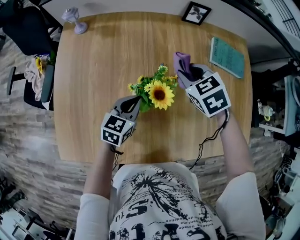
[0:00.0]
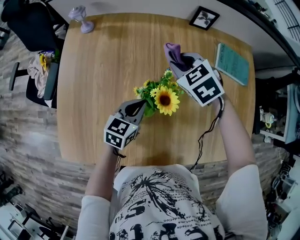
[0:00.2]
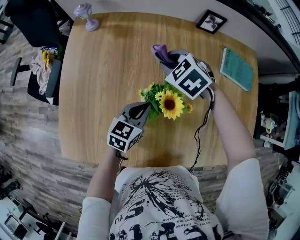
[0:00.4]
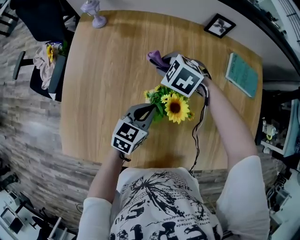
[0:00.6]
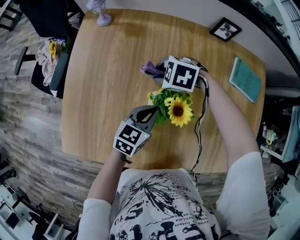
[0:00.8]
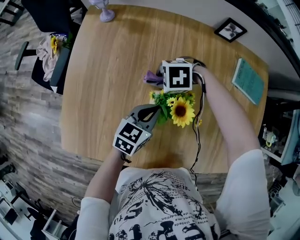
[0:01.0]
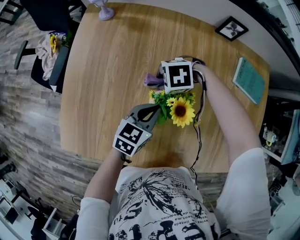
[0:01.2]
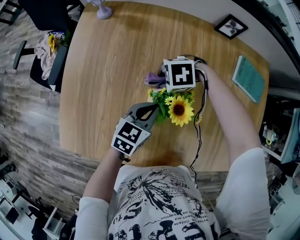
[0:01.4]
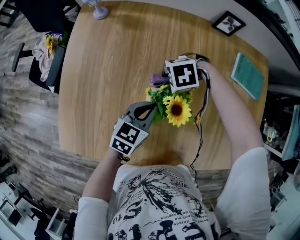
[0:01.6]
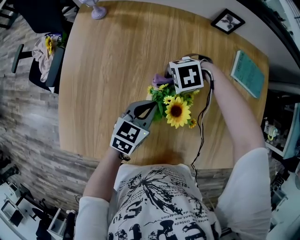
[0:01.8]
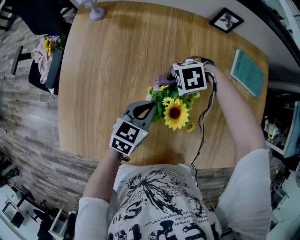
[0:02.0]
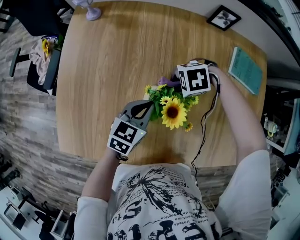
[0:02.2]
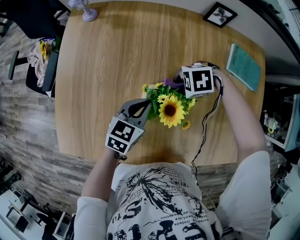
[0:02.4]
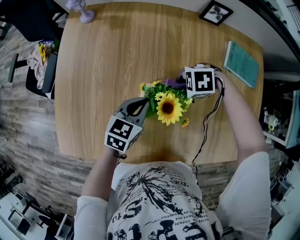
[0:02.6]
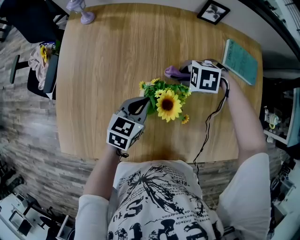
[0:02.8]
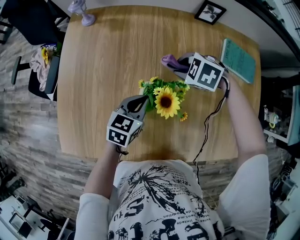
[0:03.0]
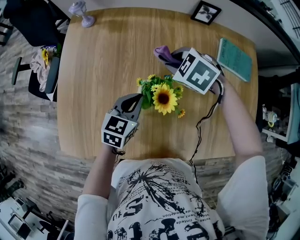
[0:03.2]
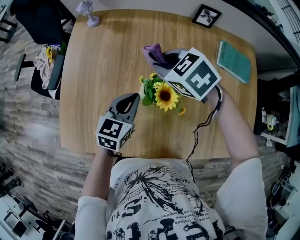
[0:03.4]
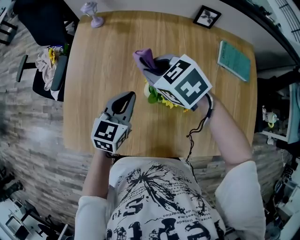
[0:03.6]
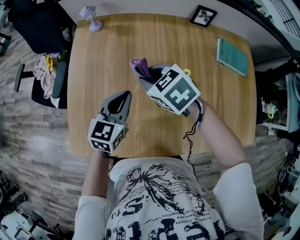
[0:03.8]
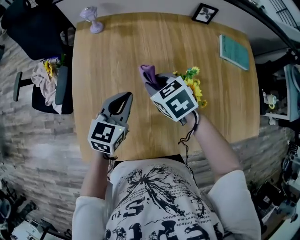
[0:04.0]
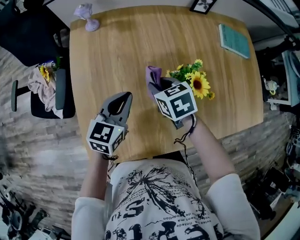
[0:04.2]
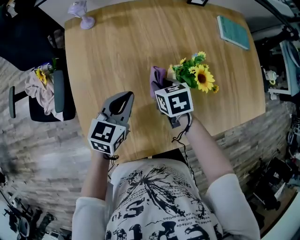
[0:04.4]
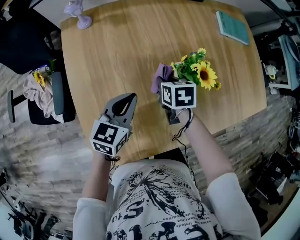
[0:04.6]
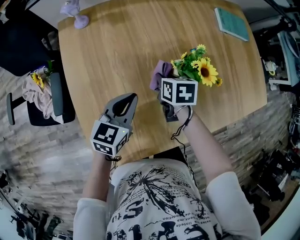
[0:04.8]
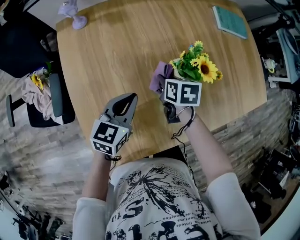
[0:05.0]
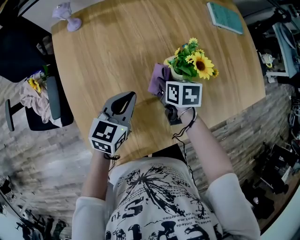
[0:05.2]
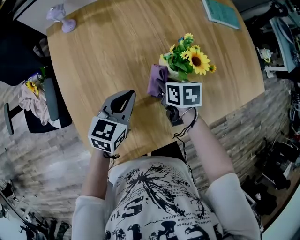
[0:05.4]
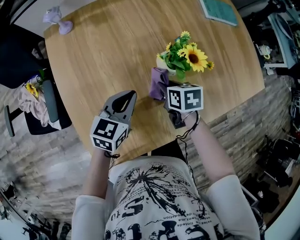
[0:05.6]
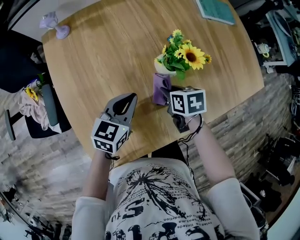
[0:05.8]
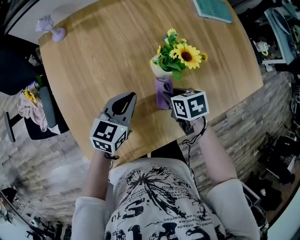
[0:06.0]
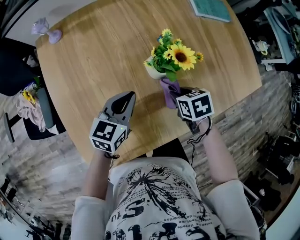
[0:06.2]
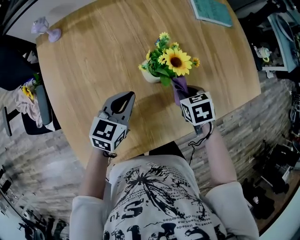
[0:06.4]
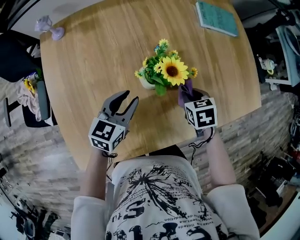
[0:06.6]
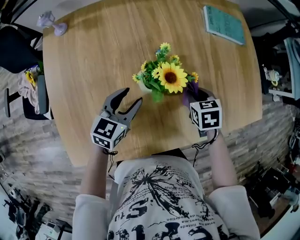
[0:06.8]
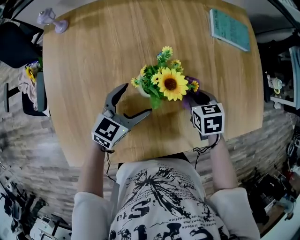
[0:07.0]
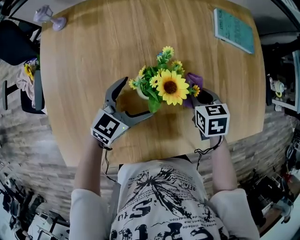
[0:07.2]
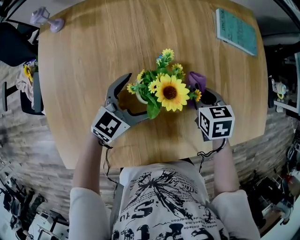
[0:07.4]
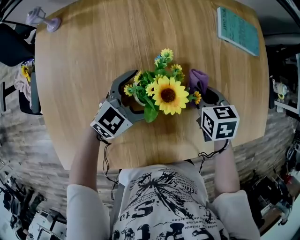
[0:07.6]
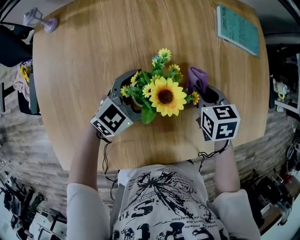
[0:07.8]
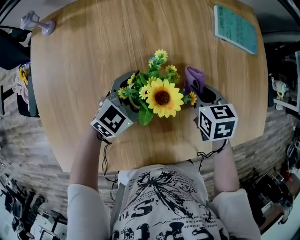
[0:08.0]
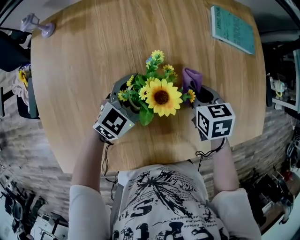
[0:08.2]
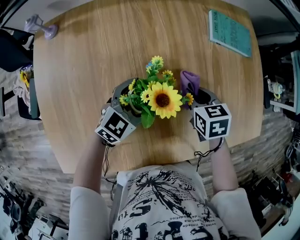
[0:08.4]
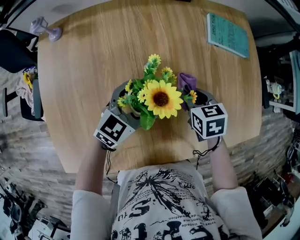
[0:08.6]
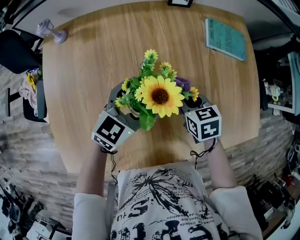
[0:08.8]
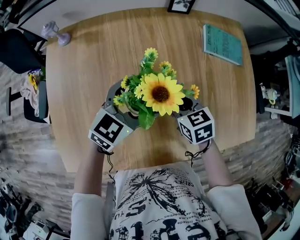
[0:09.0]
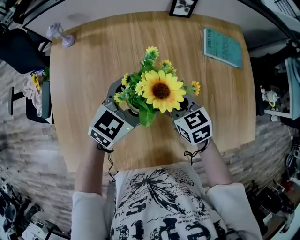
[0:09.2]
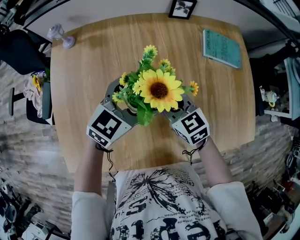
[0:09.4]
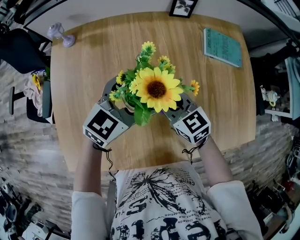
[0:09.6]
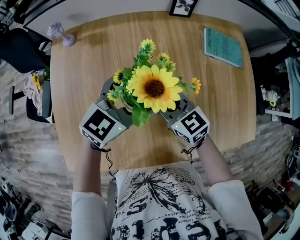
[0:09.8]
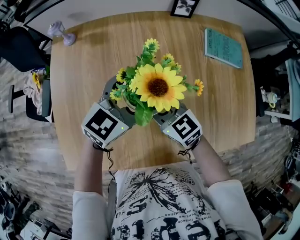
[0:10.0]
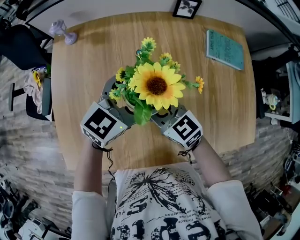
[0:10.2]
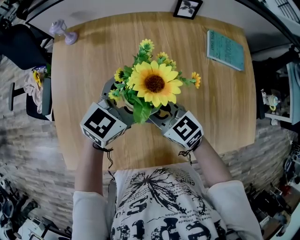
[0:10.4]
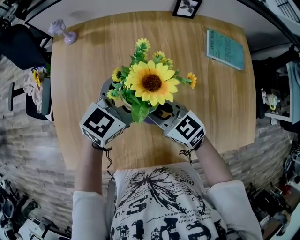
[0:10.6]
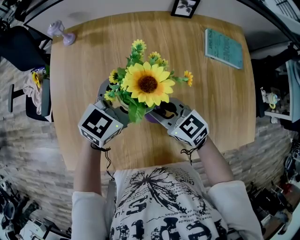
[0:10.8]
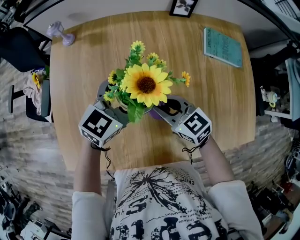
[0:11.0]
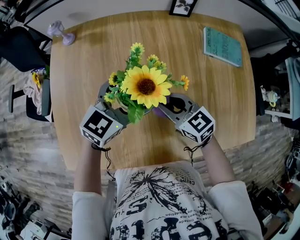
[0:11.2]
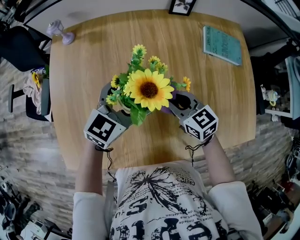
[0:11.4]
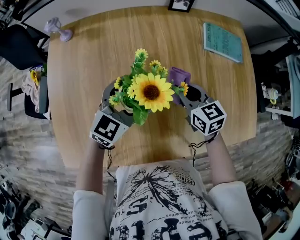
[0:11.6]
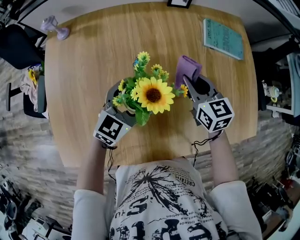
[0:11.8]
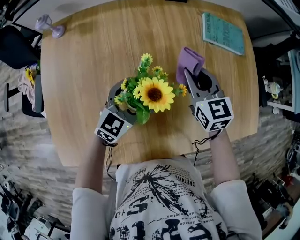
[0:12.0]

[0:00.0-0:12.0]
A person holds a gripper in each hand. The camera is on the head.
0.0 to 1.6 s: The right gripper moves downward, some 15 cm, and turns by approximately 80 degrees.
1.6 to 3.0 s: The right gripper shifts by about 10 cm, and rotates roughly 40 degrees.
3.0 to 4.4 s: The left gripper moves roughly 20 cm; the right gripper travels upward and back again, approximately 10 cm each way, and rolls clockwise, seen from behind, by about 70 degrees.
4.4 to 6.0 s: The right gripper moves to the right and backward, roughly 15 cm; the left gripper shifts some 10 cm to the right.
6.0 to 7.6 s: The left gripper travels to the right and forward by some 20 cm, turns by roughly 20 degrees, and opens its fingers. Meanwhile the right gripper travels forward and to the right by approximately 25 cm.
7.6 to 9.0 s: The left gripper is displaced upward by approximately 10 cm. Meanwhile the right gripper shifts about 10 cm to the left.
9.0 to 10.4 s: The right gripper travels to the left and upward by roughly 10 cm, and turns by about 30 degrees.
10.4 to 12.0 s: The left gripper heads downward, covering roughly 10 cm. The right gripper heads to the right and forward, covering some 20 cm, and turns by roughly 40 degrees.

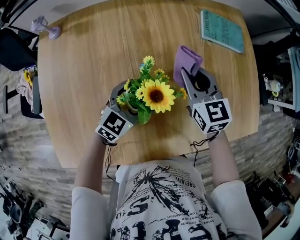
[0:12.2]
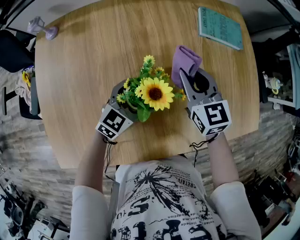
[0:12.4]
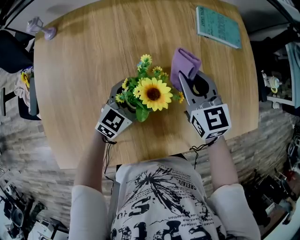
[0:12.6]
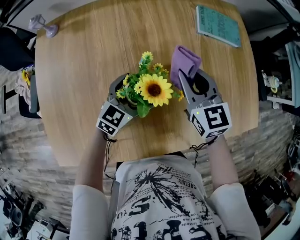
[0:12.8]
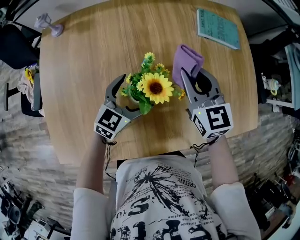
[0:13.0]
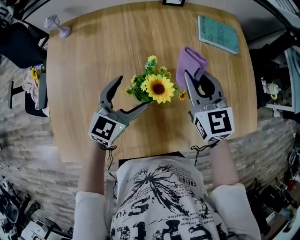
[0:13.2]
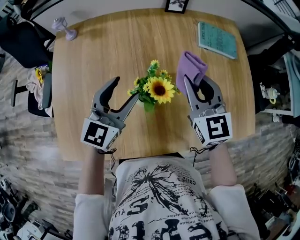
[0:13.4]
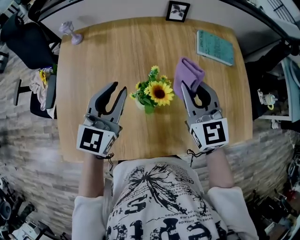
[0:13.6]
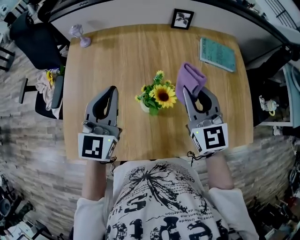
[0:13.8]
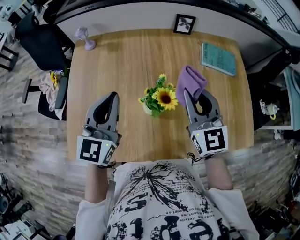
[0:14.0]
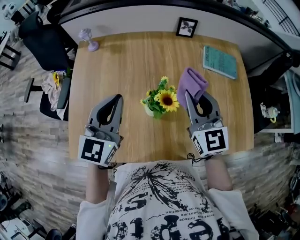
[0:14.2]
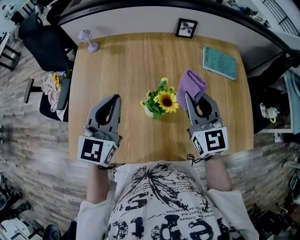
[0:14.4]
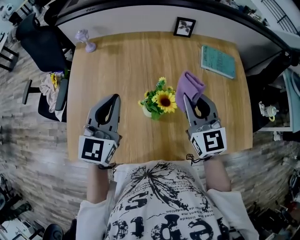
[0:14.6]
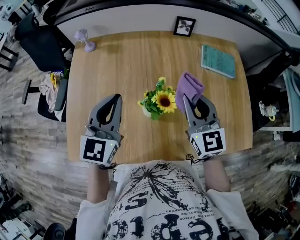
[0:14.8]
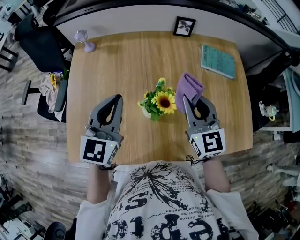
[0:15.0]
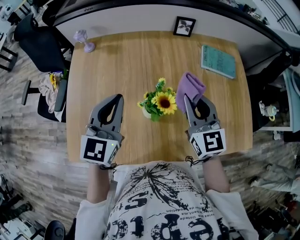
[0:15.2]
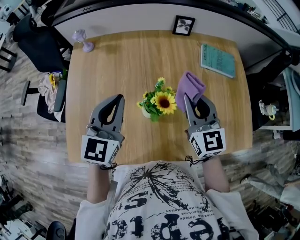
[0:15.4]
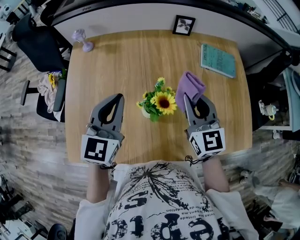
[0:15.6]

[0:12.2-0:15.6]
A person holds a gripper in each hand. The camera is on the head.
12.2 to 13.8 s: The left gripper is displaced upward and to the left by some 25 cm, rotates some 50 degrees, and closes up; the right gripper heads upward and backward, covering about 15 cm.
13.8 to 15.6 s: The grippers make only small movements.

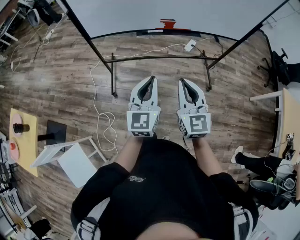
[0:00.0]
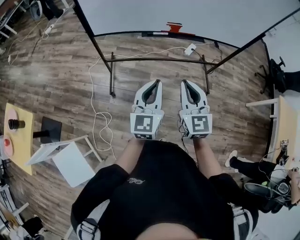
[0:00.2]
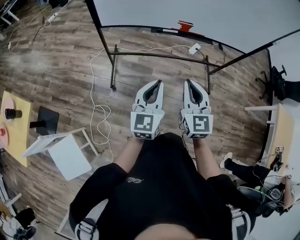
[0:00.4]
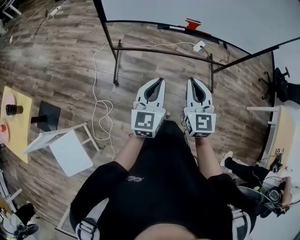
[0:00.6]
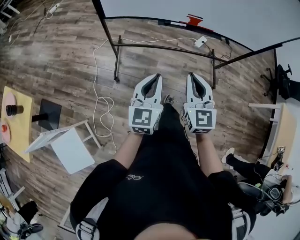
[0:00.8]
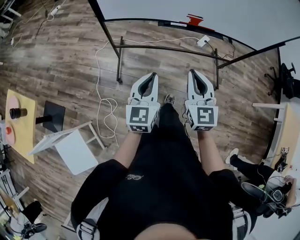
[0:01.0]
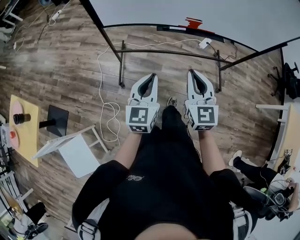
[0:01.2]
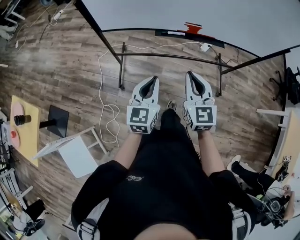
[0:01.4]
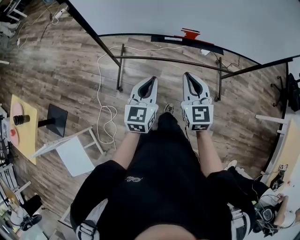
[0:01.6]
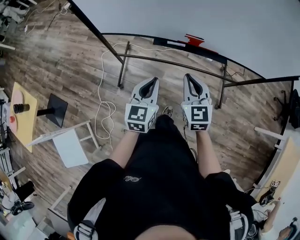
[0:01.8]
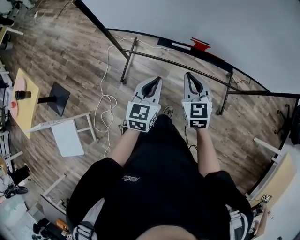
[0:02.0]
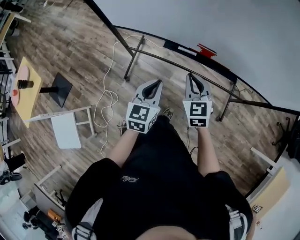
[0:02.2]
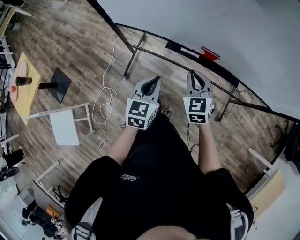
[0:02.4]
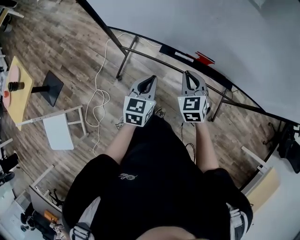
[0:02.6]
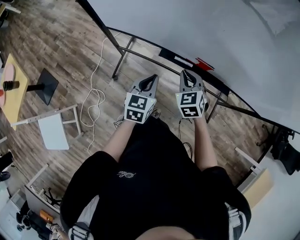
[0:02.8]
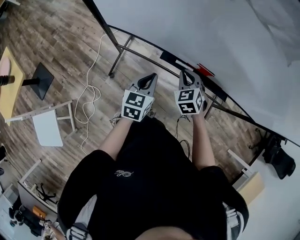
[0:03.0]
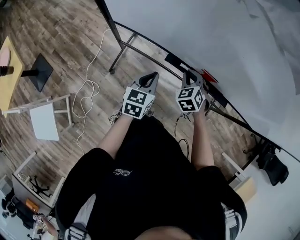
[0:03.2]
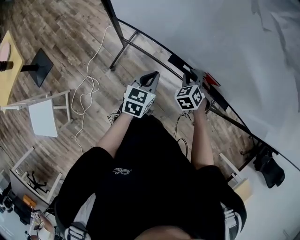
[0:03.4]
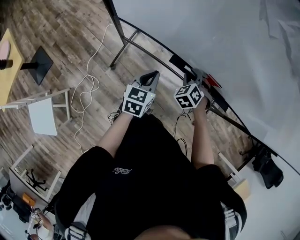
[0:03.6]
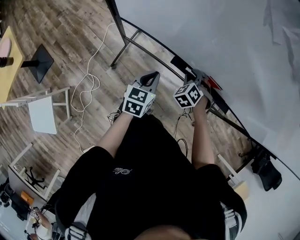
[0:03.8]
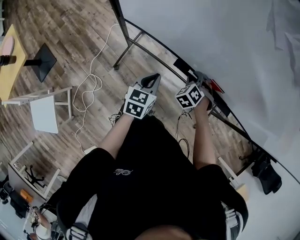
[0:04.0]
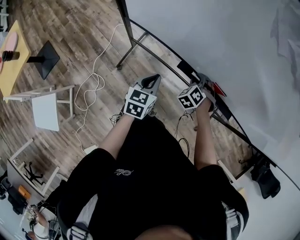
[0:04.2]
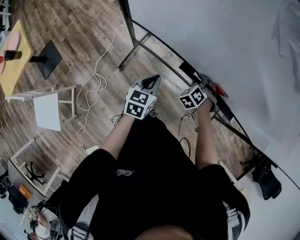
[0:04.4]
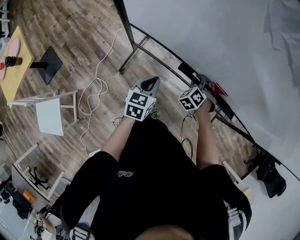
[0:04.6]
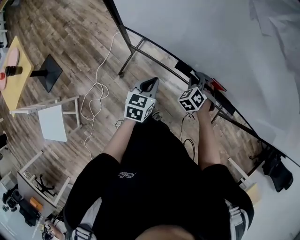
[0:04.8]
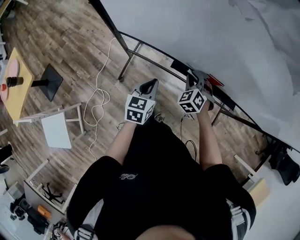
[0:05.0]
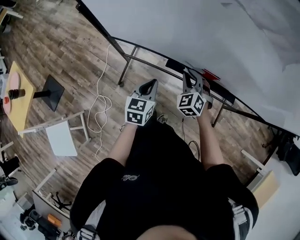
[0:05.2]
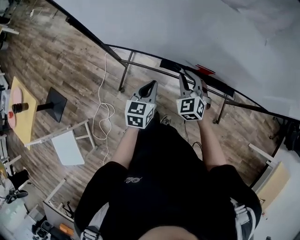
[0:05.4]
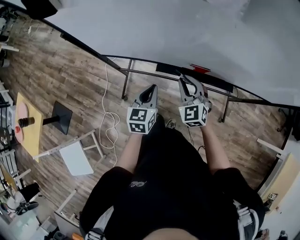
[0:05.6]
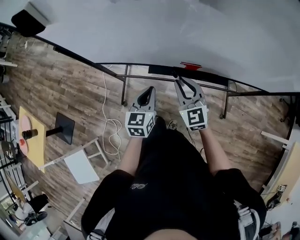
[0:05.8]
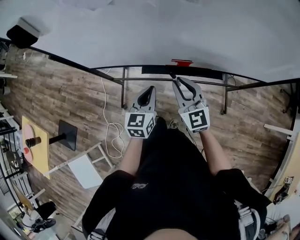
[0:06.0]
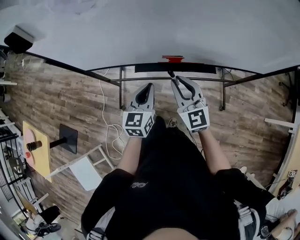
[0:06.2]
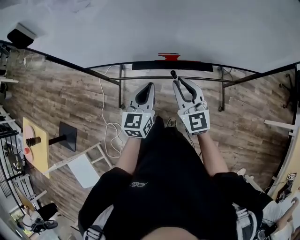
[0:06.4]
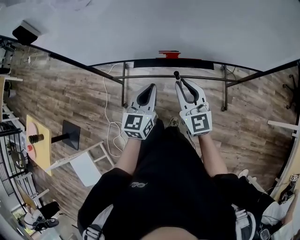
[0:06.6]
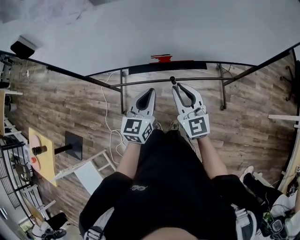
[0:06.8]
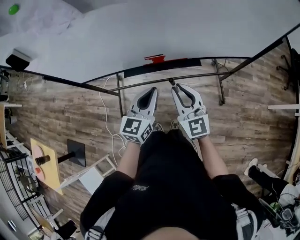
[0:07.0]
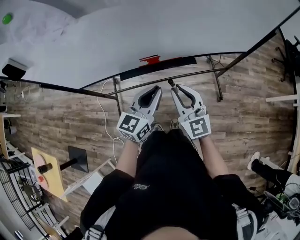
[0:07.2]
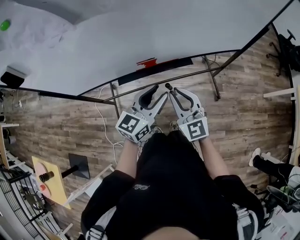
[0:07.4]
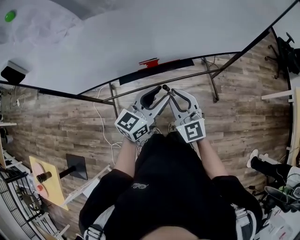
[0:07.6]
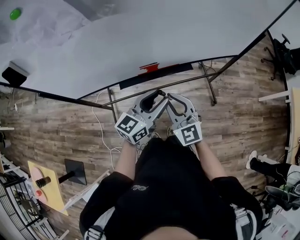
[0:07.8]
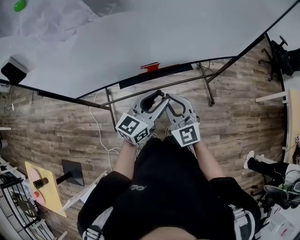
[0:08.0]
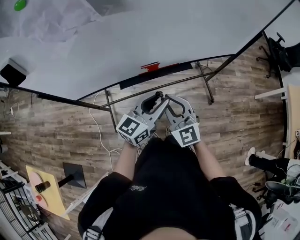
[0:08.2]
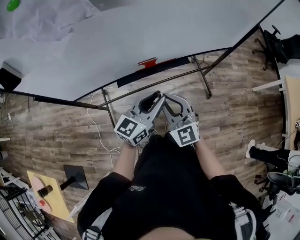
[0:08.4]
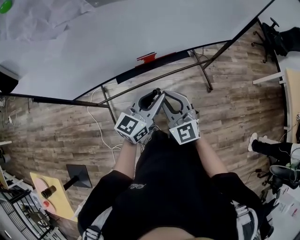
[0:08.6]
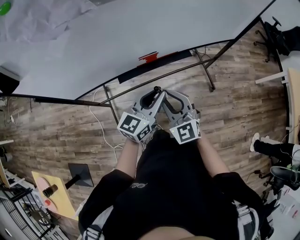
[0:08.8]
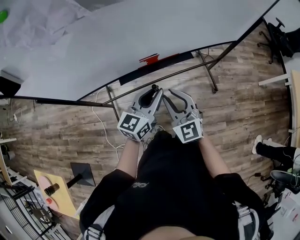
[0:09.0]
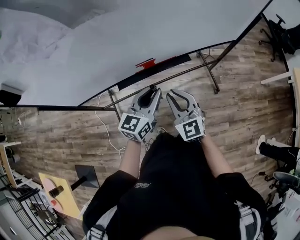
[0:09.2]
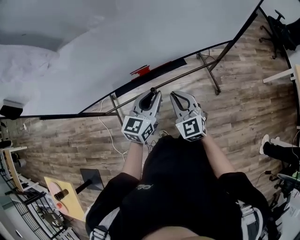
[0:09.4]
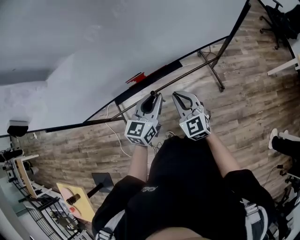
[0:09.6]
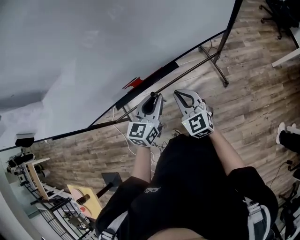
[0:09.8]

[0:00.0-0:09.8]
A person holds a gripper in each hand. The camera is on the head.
0.0 to 1.4 s: The right gripper goes approximately 15 cm forward, while the left gripper moves forward, downward and to the left, some 15 cm.
1.4 to 2.8 s: The grippers both shift forward and downward by about 25 cm. The right gripper rotates roughly 40 degrees.
2.8 to 4.2 s: The left gripper shifts approximately 10 cm to the left and downward, while the right gripper is displaced downward and forward by approximately 15 cm, and changes its angle by roughly 40 degrees.
4.2 to 5.6 s: The left gripper travels to the right and upward by approximately 10 cm, while the right gripper travels upward and backward by roughly 15 cm, and angles its fingers upward, by roughly 30 degrees.
5.6 to 7.0 s: The right gripper moves to the right, backward and upward, approximately 20 cm, and turns by some 30 degrees, while the left gripper travels to the right and upward by approximately 20 cm, and changes its angle by approximately 30 degrees.
7.0 to 8.4 s: The left gripper swivels about 30 degrees. The right gripper heads to the left and backward, covering approximately 10 cm.
8.4 to 9.8 s: The left gripper shifts some 15 cm to the right, forward and downward, and rotates some 20 degrees; the right gripper shifts approximately 20 cm to the right and forward.
